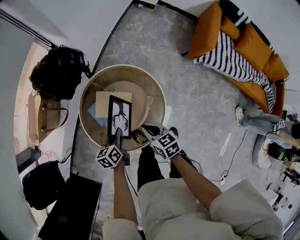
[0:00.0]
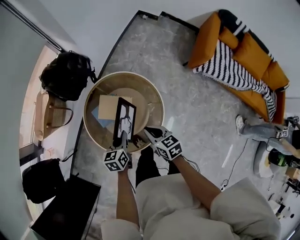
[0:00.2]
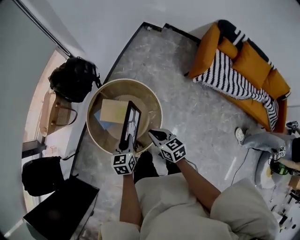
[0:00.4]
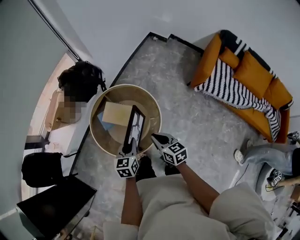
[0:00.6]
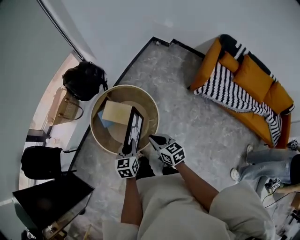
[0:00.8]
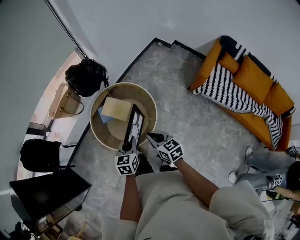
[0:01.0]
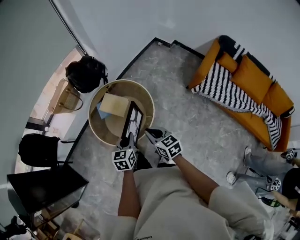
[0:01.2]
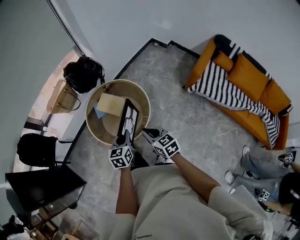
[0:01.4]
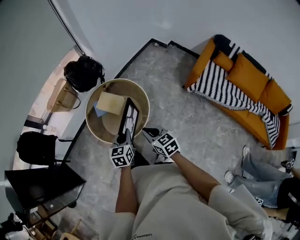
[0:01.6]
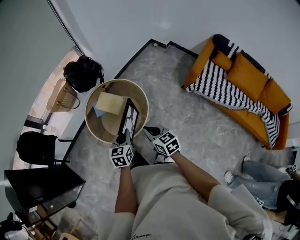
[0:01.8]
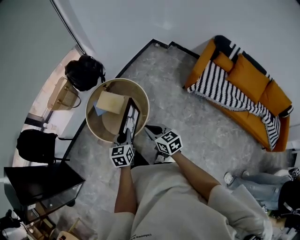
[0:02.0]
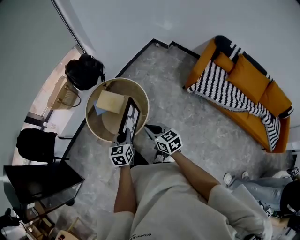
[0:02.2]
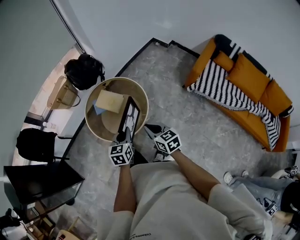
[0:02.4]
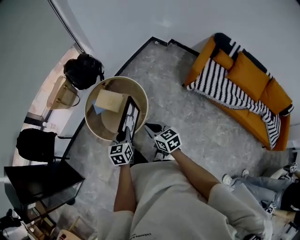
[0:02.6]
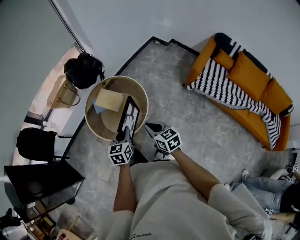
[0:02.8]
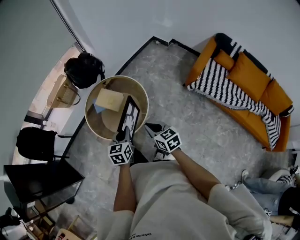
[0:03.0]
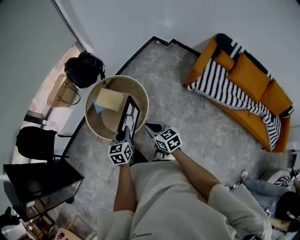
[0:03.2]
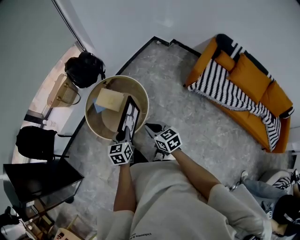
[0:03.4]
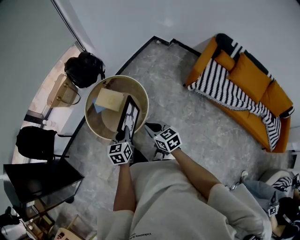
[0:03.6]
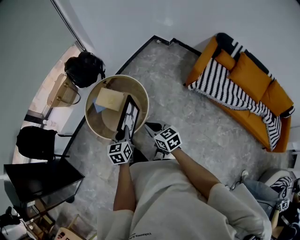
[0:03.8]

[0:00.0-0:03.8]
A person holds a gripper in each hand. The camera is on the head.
0:00.0 to 0:01.2: The grippers both shift backward, upward and to the right by roughly 30 cm. The right gripper changes its angle by about 20 degrees; the left gripper turns by about 30 degrees.
0:01.2 to 0:02.6: The right gripper ends up roughly 5 cm from where it was; the left gripper moves about 5 cm.
0:02.6 to 0:03.8: Neither gripper changes place.

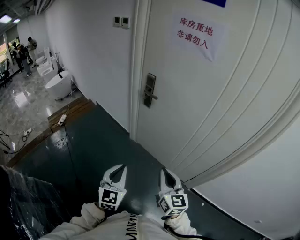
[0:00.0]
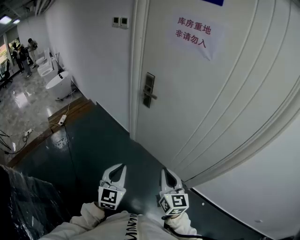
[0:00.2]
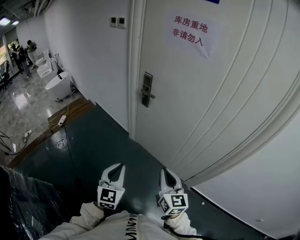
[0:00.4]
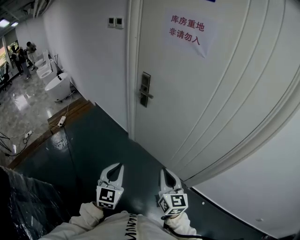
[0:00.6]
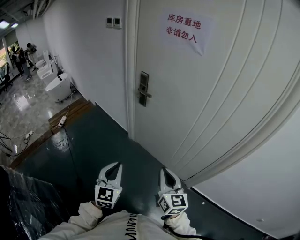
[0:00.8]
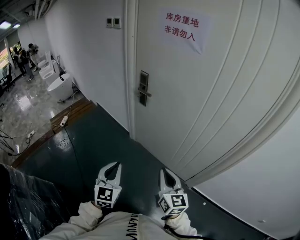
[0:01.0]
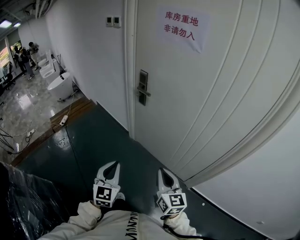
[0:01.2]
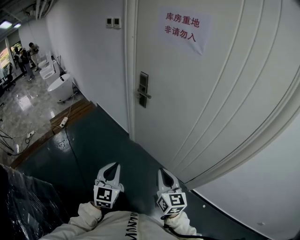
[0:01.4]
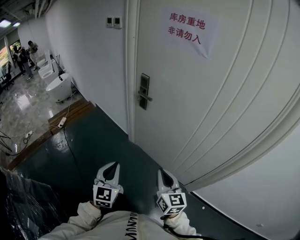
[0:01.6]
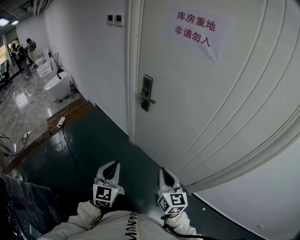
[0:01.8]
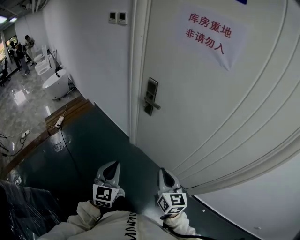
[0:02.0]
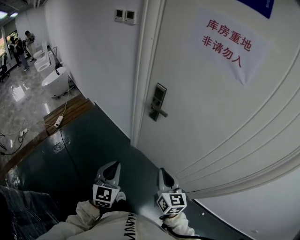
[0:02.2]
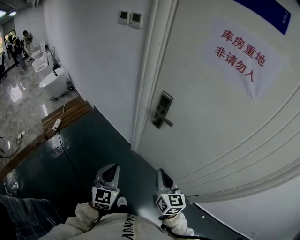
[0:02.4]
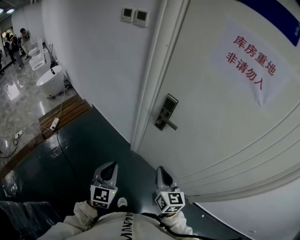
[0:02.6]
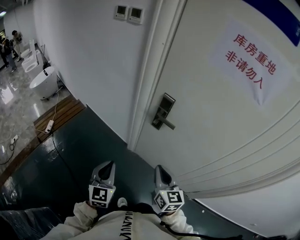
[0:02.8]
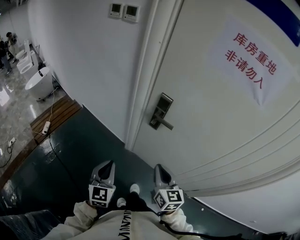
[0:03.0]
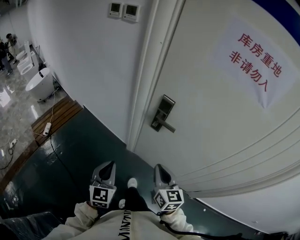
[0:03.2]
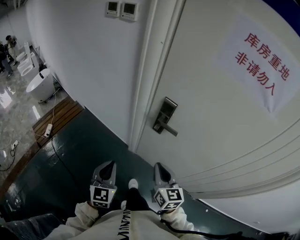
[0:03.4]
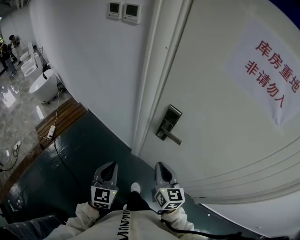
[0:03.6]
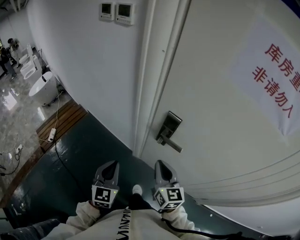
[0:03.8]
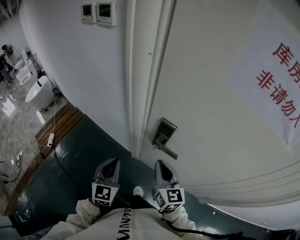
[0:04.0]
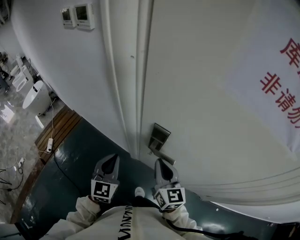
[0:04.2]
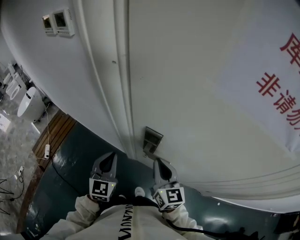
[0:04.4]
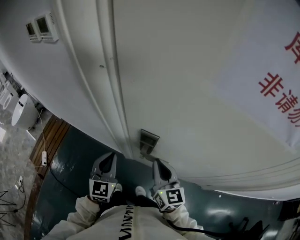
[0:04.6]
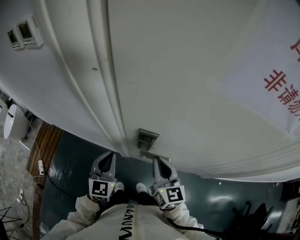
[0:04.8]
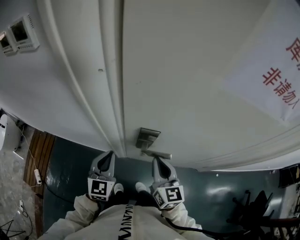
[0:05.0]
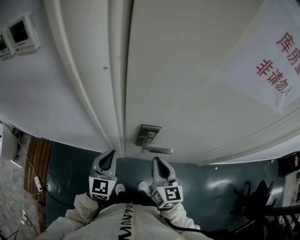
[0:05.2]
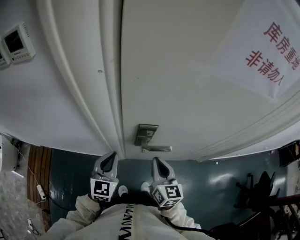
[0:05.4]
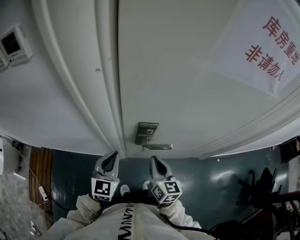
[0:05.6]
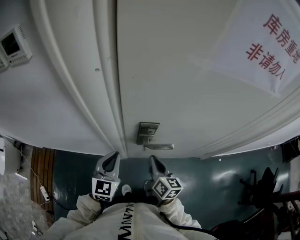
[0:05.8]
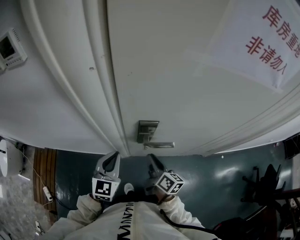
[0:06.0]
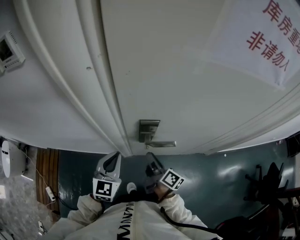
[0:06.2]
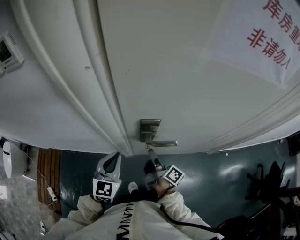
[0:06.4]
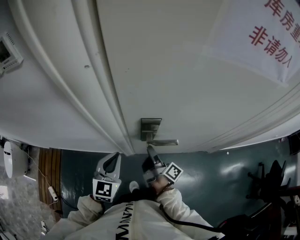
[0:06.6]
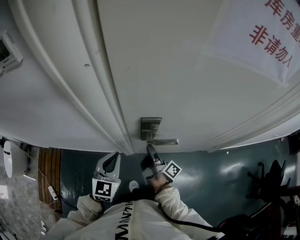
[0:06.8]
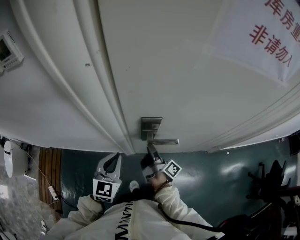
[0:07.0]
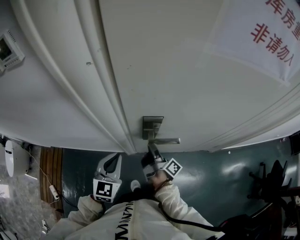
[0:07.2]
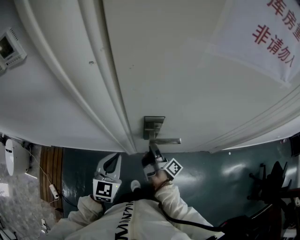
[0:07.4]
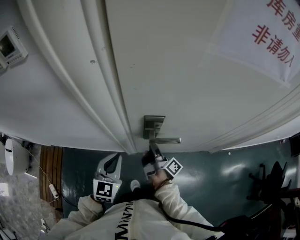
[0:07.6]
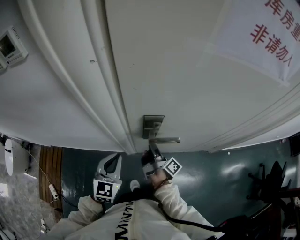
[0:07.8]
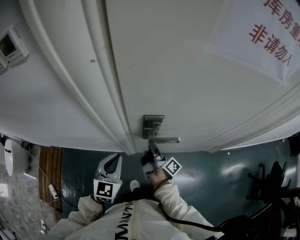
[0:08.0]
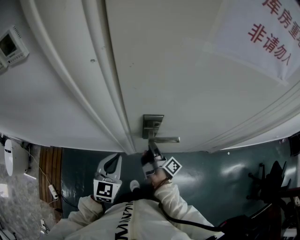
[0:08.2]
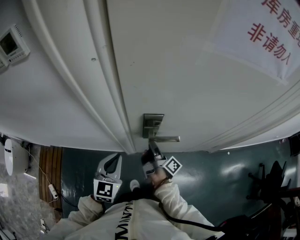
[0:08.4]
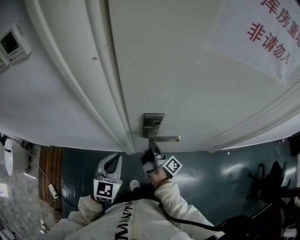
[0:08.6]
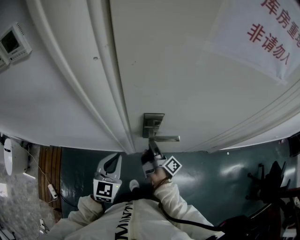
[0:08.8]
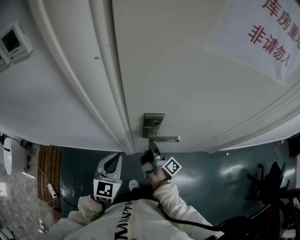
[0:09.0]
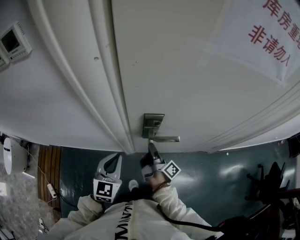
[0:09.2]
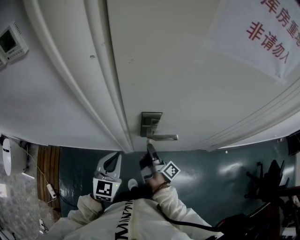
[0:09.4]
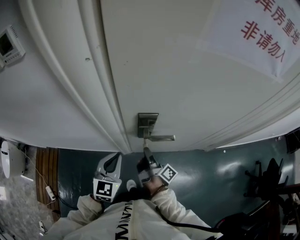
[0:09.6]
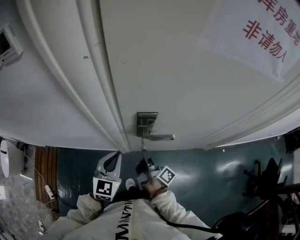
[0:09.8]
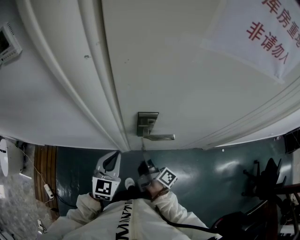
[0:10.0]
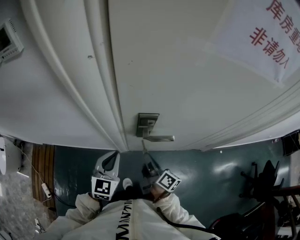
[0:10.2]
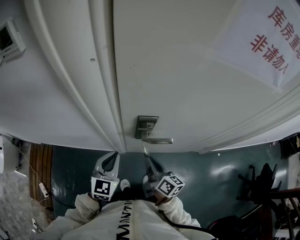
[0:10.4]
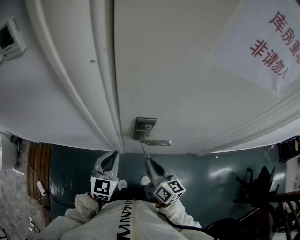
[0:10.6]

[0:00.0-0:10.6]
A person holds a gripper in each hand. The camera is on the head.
0:00.0 to 0:01.6: The right gripper shifts by approximately 5 cm.
0:01.6 to 0:03.0: The grippers both shift forward and to the left by some 30 cm.
0:03.0 to 0:04.6: The grippers both shift forward by some 25 cm.
0:04.6 to 0:06.0: The right gripper is displaced downward by roughly 10 cm, and rolls clockwise, seen from behind, by roughly 40 degrees. Meanwhile the left gripper swivels roughly 30 degrees.
0:06.0 to 0:07.6: The right gripper shifts by roughly 5 cm, twists approximately 40 degrees clockwise, seen from behind, and opens and closes again.
0:07.6 to 0:09.0: Both grippers stay put.
0:09.0 to 0:10.6: The right gripper moves upward and backward, some 10 cm, and rotates around the line of its fingers by some 60 degrees, counterclockwise from behind.

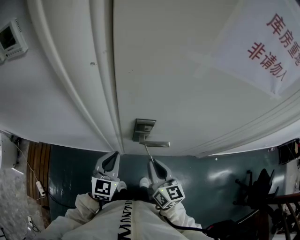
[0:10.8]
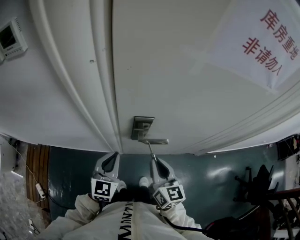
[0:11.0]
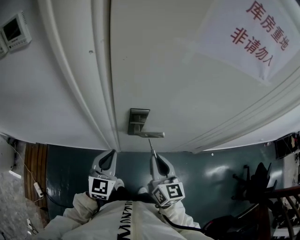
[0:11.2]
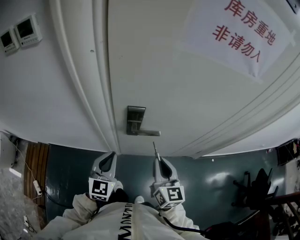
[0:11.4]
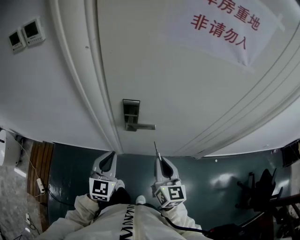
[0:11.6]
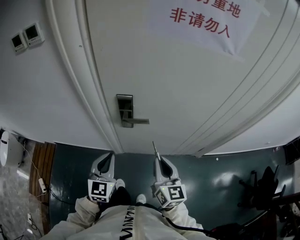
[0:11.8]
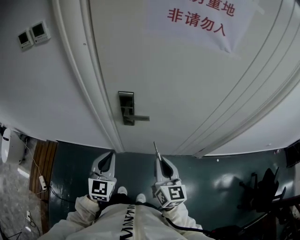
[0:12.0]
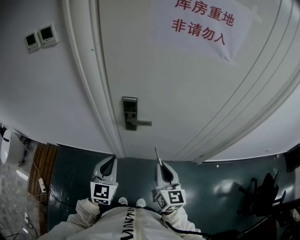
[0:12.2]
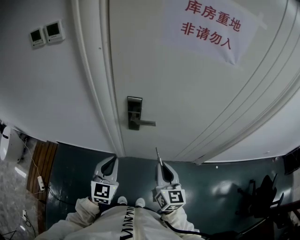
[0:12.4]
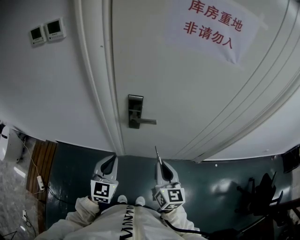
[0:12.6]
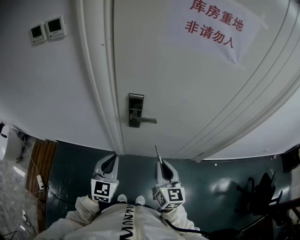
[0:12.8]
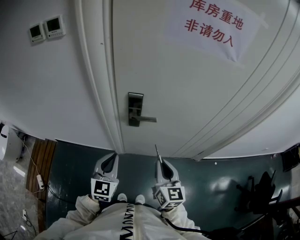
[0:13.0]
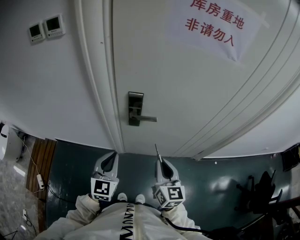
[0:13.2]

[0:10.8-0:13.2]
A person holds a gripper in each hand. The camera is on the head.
0:10.8 to 0:12.0: Both grippers travel together backward and to the right, about 15 cm.
0:12.0 to 0:13.2: The grippers make only small movements.

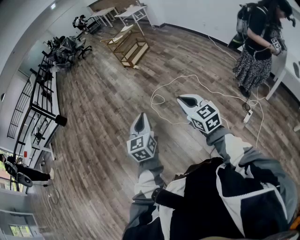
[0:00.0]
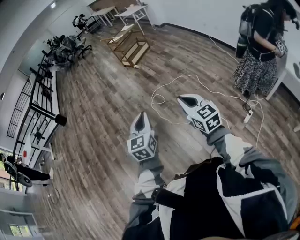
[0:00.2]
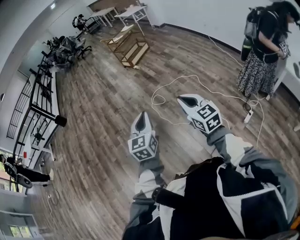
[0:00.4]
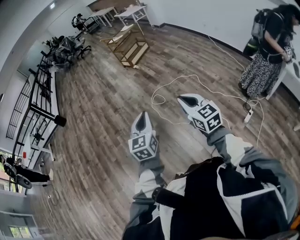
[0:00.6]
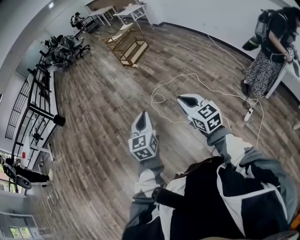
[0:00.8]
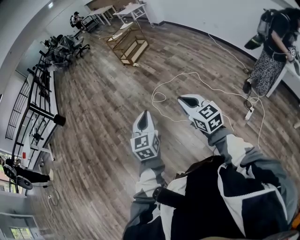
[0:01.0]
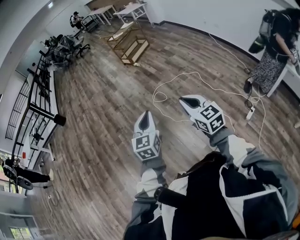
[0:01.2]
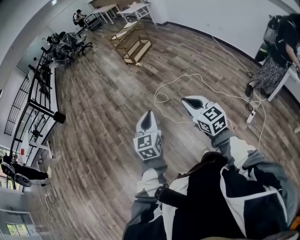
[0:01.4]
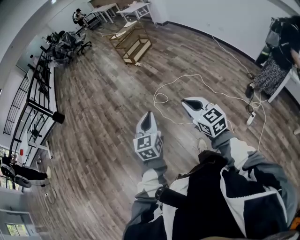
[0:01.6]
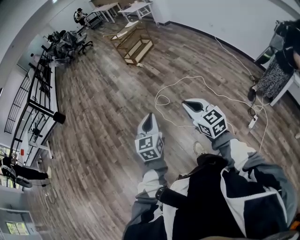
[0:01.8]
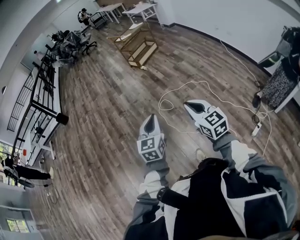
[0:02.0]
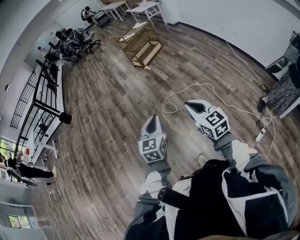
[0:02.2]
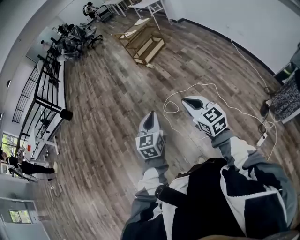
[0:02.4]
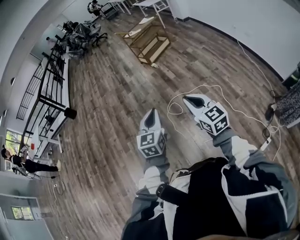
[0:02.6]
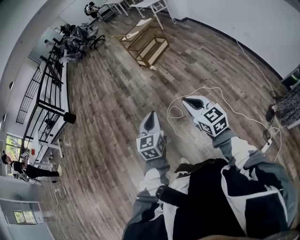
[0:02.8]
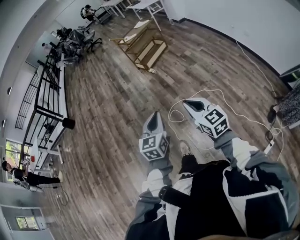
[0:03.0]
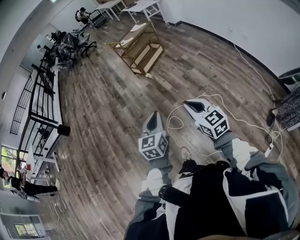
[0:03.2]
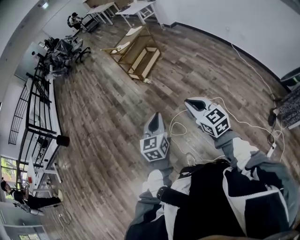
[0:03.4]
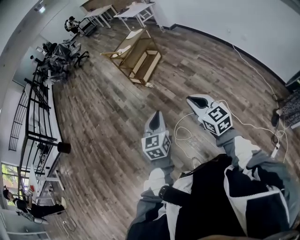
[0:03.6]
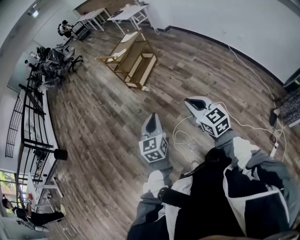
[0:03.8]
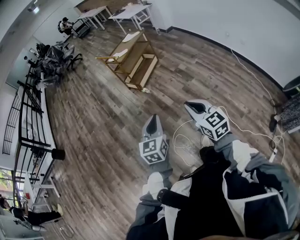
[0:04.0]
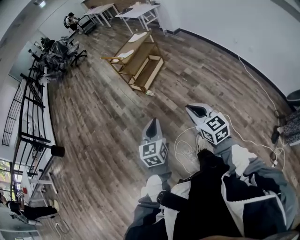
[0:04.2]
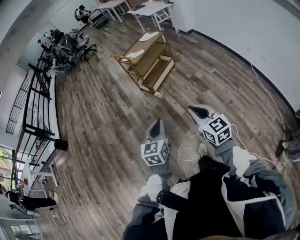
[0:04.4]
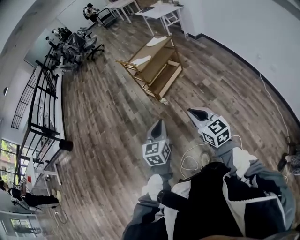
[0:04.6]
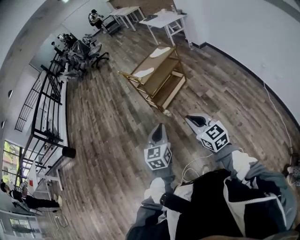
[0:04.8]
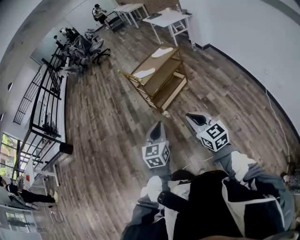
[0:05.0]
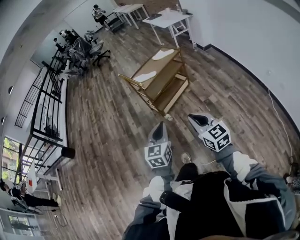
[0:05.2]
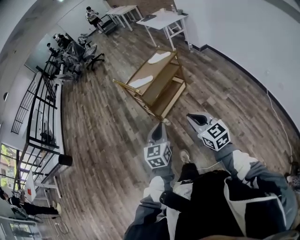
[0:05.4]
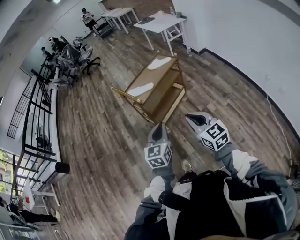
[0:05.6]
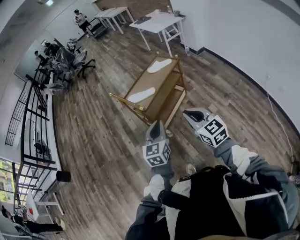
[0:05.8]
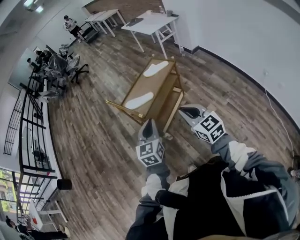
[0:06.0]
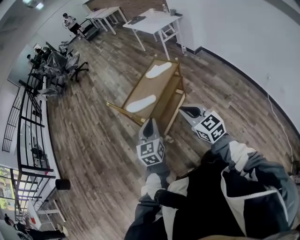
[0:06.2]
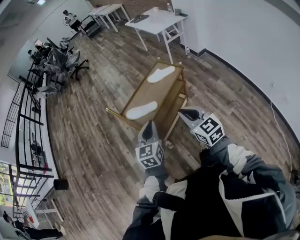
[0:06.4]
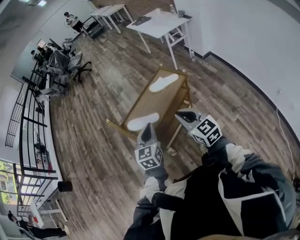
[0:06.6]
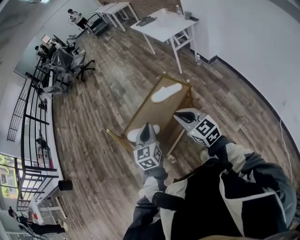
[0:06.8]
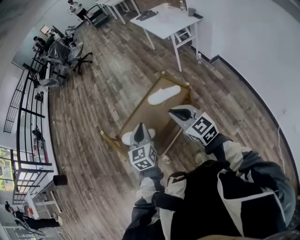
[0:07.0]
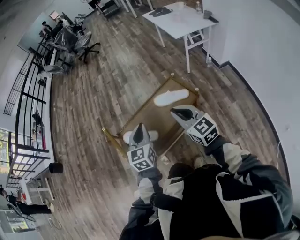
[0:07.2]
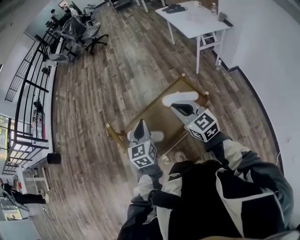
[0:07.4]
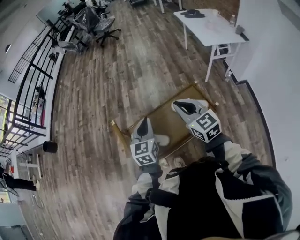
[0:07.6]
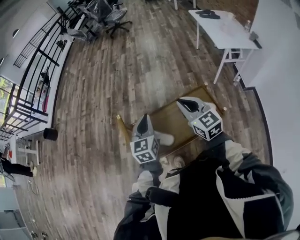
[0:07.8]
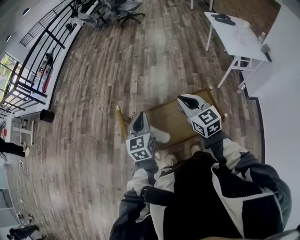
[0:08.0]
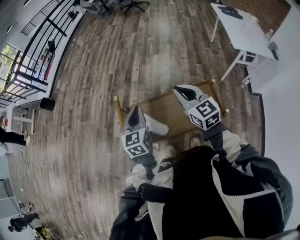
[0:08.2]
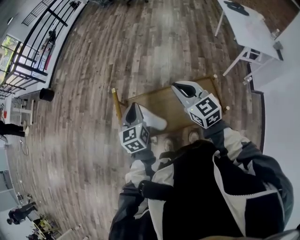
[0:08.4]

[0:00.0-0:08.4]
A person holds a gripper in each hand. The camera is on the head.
0:00.0 to 0:01.4: The right gripper is displaced to the left by approximately 5 cm; the left gripper ends up about 5 cm from where it was.
0:01.4 to 0:02.8: Both grippers move forward, roughly 30 cm.
0:02.8 to 0:04.2: Both grippers are carried forward, roughly 40 cm.
0:04.2 to 0:05.6: The pair of grippers is taken forward, some 50 cm.
0:05.6 to 0:07.0: The pair of grippers is taken forward, some 50 cm.
0:07.0 to 0:08.4: The right gripper moves about 25 cm, and turns by some 30 degrees; the left gripper changes place by some 20 cm, and changes its angle by roughly 40 degrees.
